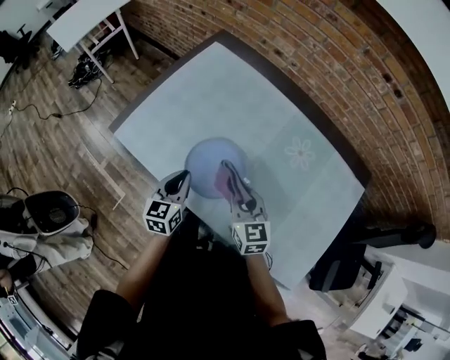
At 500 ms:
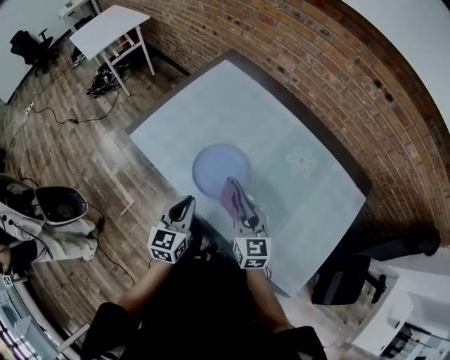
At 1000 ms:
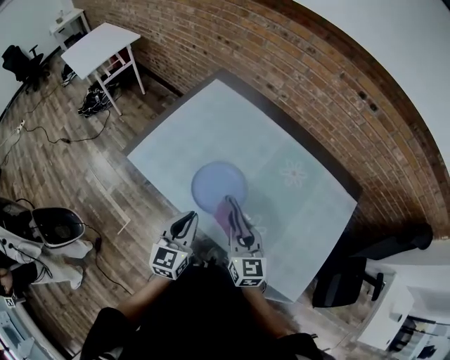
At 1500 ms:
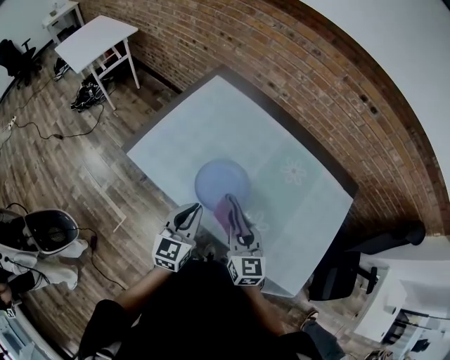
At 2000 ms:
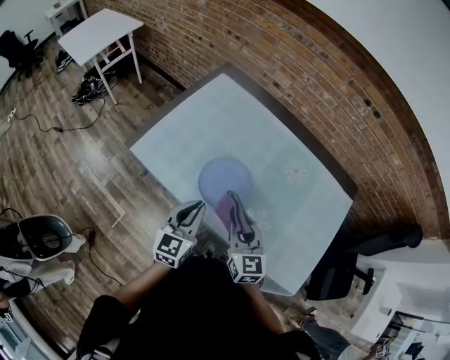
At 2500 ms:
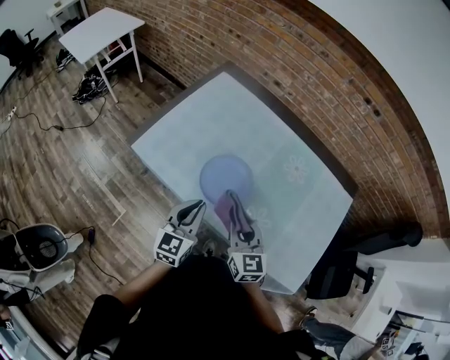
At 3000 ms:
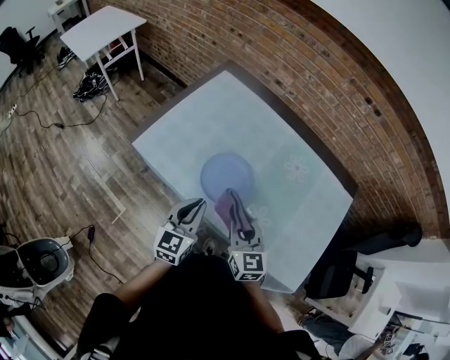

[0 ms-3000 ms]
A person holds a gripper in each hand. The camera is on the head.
0 ms to 1500 ms: The right gripper heads backward and upward, covering approximately 15 cm; the left gripper moves upward and backward, roughly 15 cm.
1500 ms to 3000 ms: The grippers make only small movements.

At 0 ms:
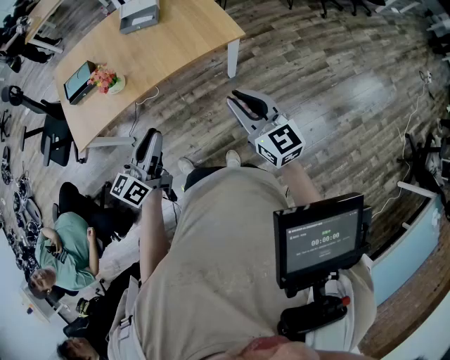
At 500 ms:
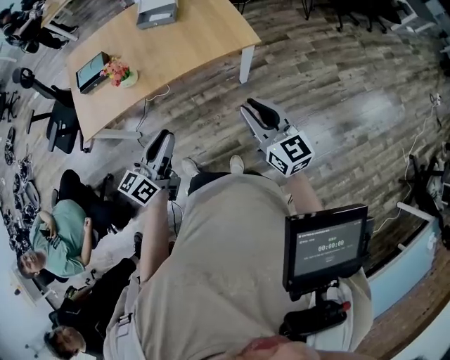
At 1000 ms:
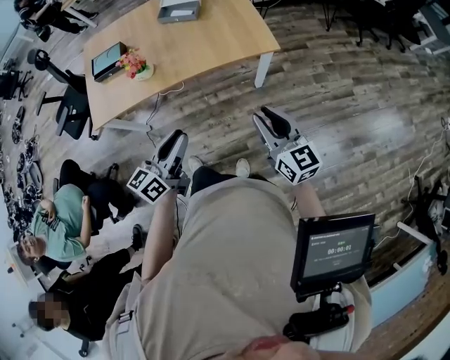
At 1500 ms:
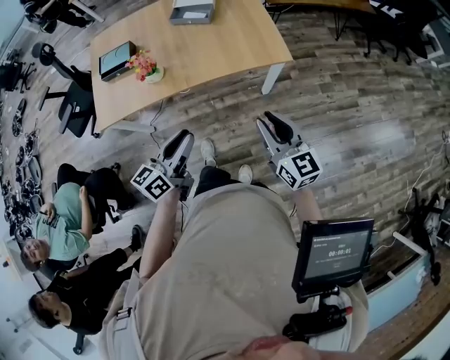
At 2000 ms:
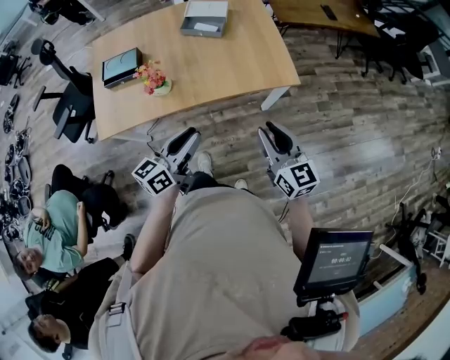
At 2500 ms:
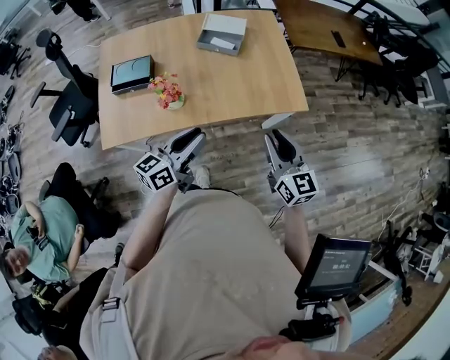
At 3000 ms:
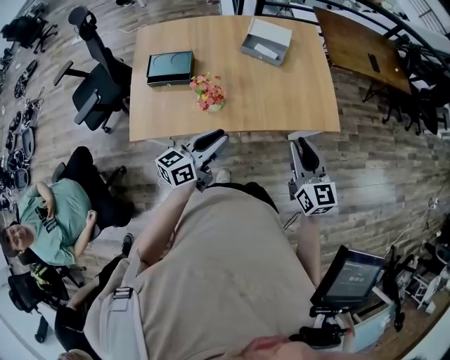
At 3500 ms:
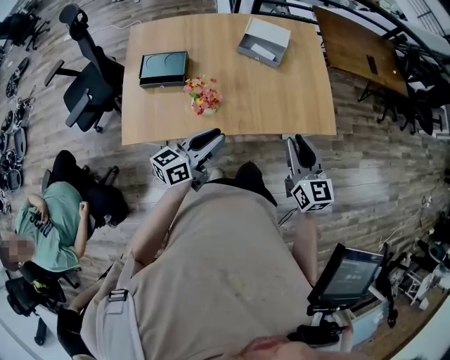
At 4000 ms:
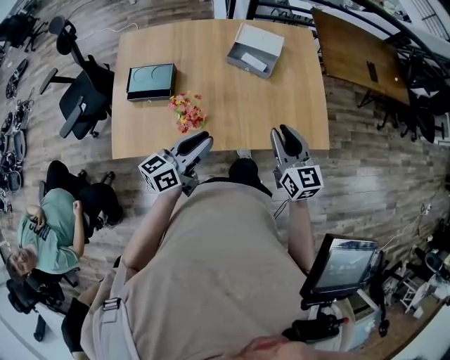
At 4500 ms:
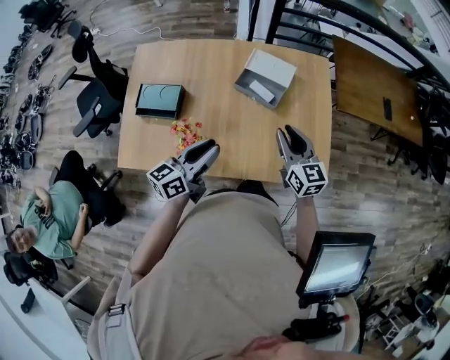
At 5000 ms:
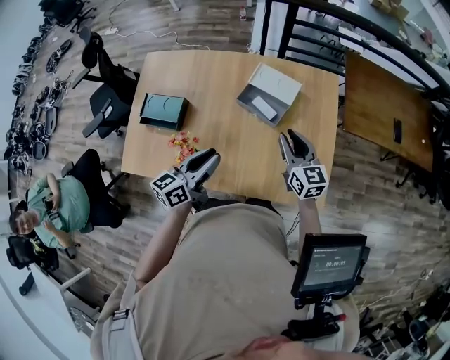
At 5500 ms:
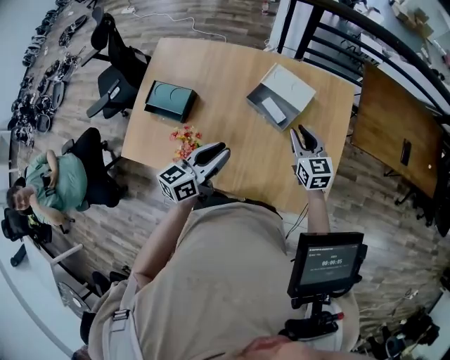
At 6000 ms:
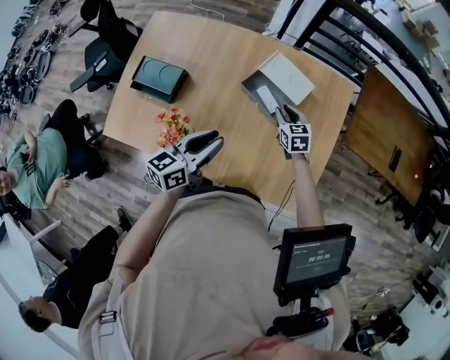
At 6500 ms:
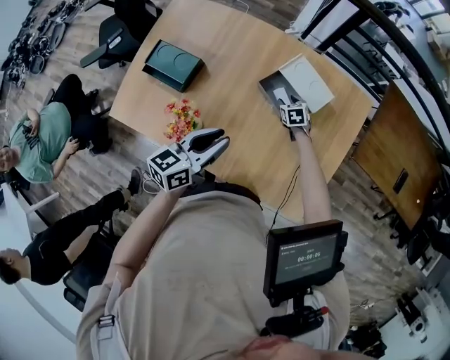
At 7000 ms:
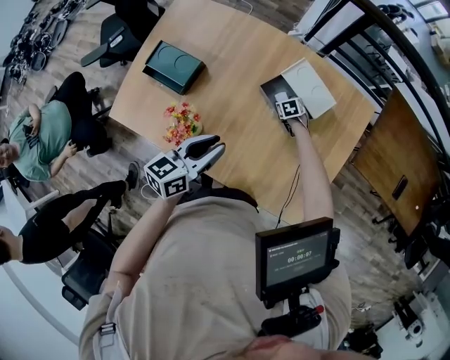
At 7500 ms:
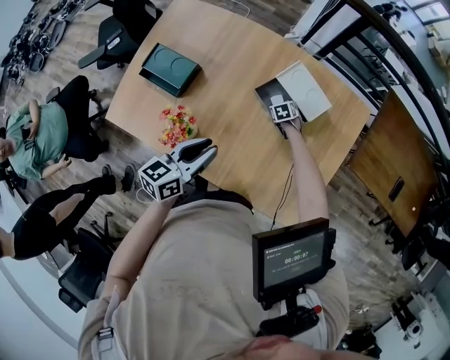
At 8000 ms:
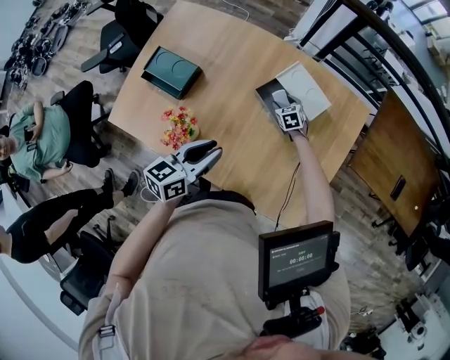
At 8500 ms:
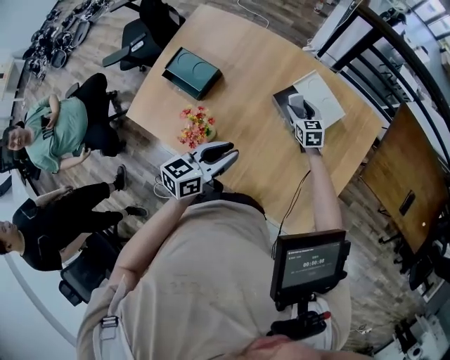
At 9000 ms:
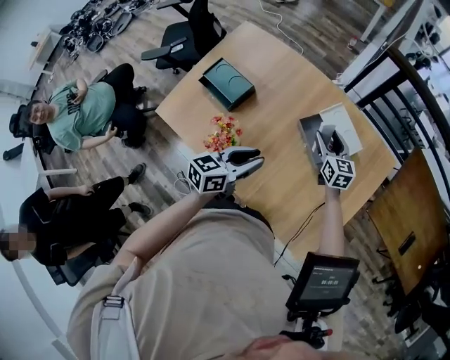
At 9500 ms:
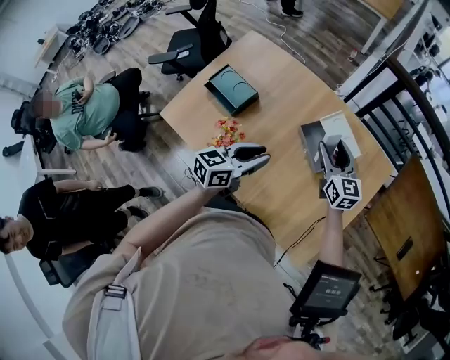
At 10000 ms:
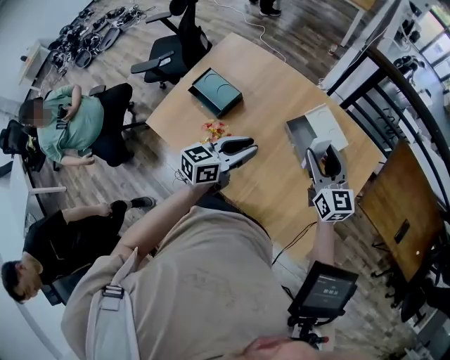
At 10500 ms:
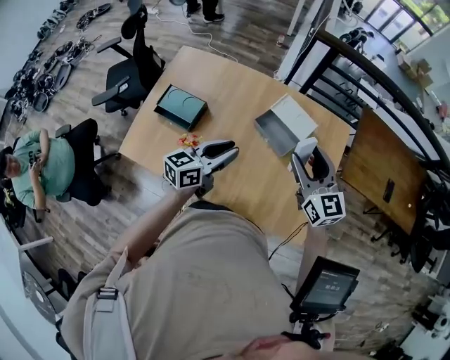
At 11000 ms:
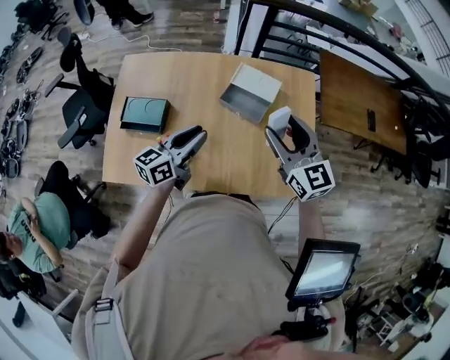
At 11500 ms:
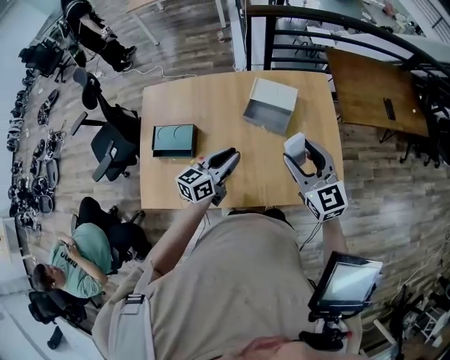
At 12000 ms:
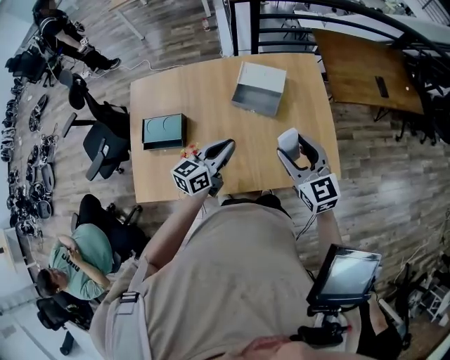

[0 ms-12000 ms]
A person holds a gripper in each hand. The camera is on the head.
0 ms to 2000 ms: Both grippers move forward and to the left, approximately 15 cm.
2000 ms to 4000 ms: The grippers both shift forward and to the left by approximately 30 cm.
4000 ms to 6000 ms: The right gripper heads forward and downward, covering approximately 40 cm, and swivels about 40 degrees. The left gripper heads forward and to the right, covering approximately 25 cm, and turns by approximately 20 degrees.
6000 ms to 8000 ms: The right gripper heads downward and forward, covering roughly 15 cm, swivels approximately 20 degrees, and opens its fingers.
8000 ms to 10000 ms: The right gripper travels upward by approximately 40 cm, and tilts its fingers some 50 degrees upward. The left gripper travels upward by some 5 cm.
10000 ms to 12000 ms: The left gripper rotates approximately 30 degrees; the right gripper moves some 20 cm, and rotates roughly 30 degrees.

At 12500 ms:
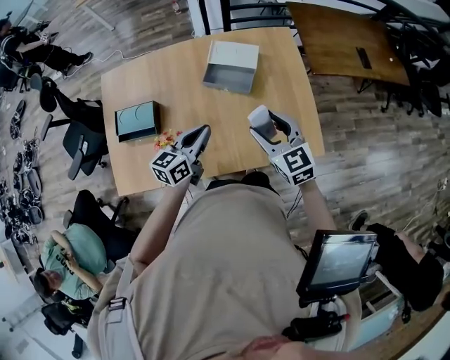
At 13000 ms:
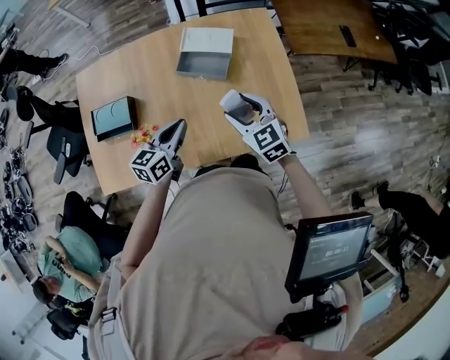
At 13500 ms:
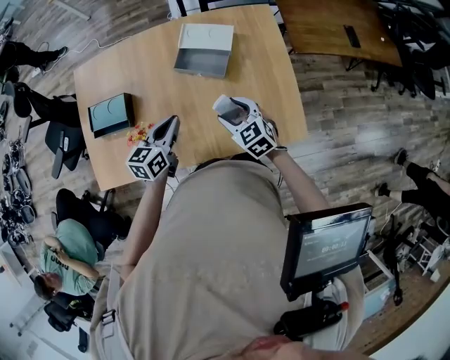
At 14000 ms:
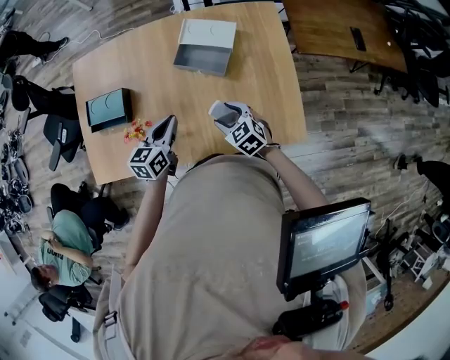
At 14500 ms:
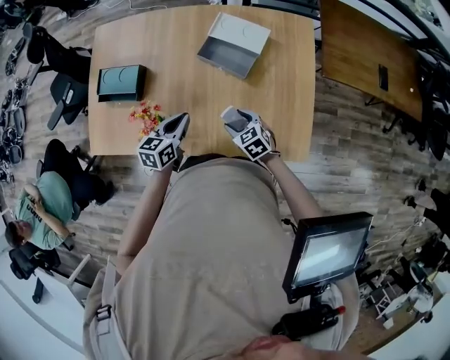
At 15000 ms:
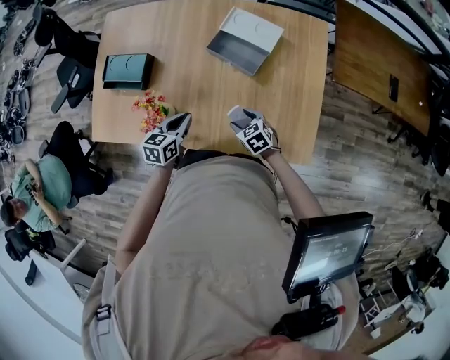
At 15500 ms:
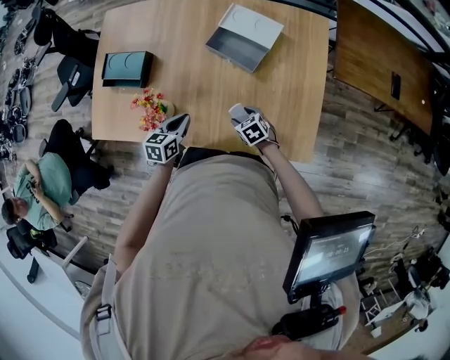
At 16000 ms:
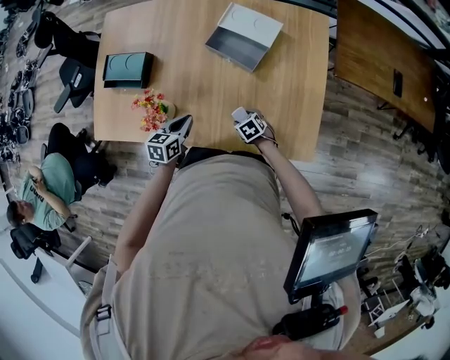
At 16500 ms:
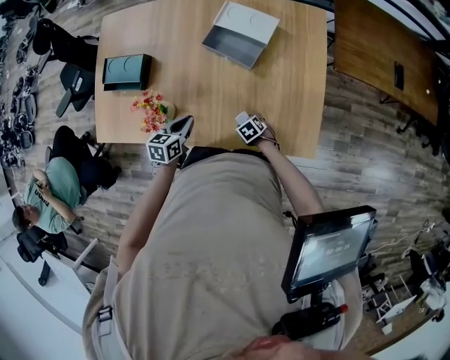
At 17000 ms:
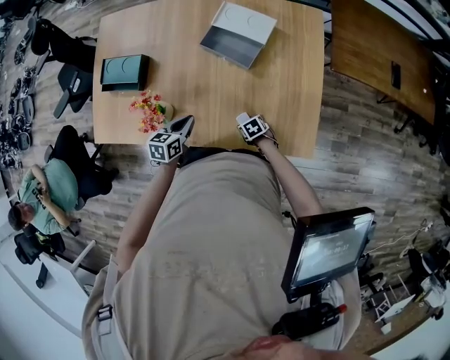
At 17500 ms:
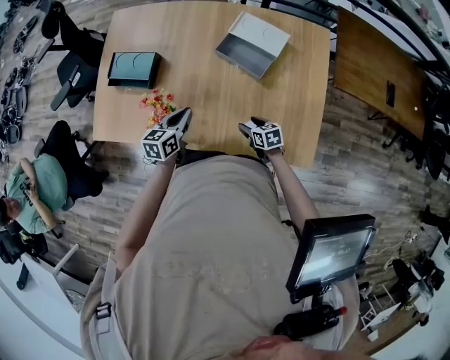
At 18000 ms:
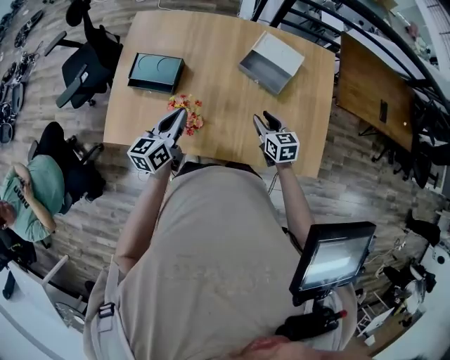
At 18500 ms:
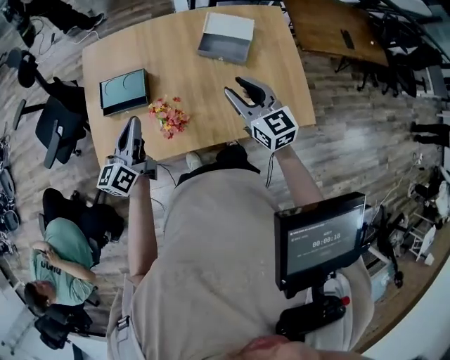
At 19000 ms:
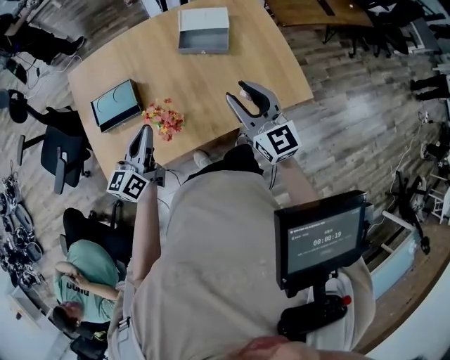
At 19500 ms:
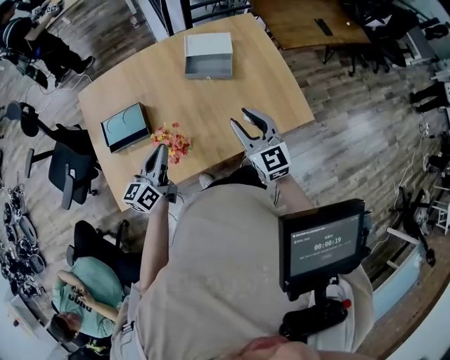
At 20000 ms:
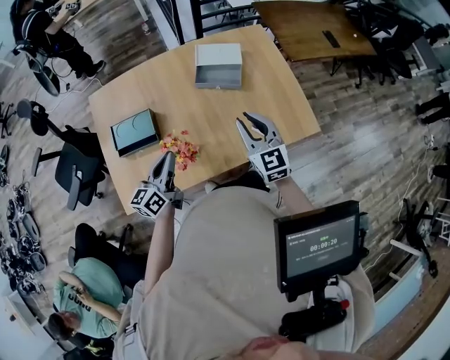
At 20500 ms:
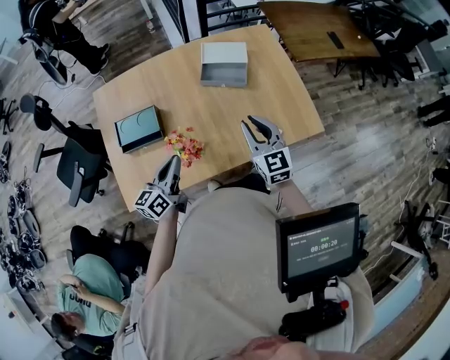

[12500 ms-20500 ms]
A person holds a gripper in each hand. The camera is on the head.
12500 ms to 14500 ms: The right gripper is displaced downward by approximately 25 cm, and turns by approximately 30 degrees. The left gripper is displaced downward by roughly 10 cm, and rotates about 20 degrees.
14500 ms to 16500 ms: The right gripper travels downward by approximately 20 cm, and changes its angle by roughly 20 degrees. Meanwhile the left gripper is displaced downward by some 10 cm.
16500 ms to 18500 ms: The right gripper is displaced upward by some 40 cm, points its fingers about 50 degrees further upward, and closes up. Meanwhile the left gripper goes some 35 cm to the left and upward, and tips its fingers upward by about 40 degrees.
18500 ms to 20500 ms: The left gripper travels to the right and downward by about 10 cm. Meanwhile the right gripper changes place by approximately 5 cm.

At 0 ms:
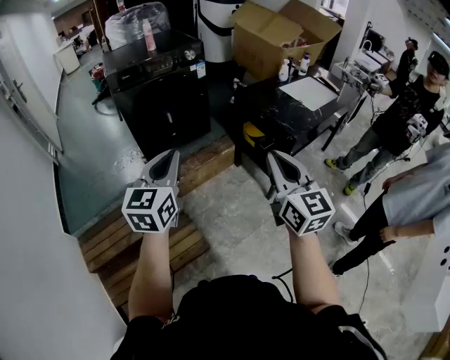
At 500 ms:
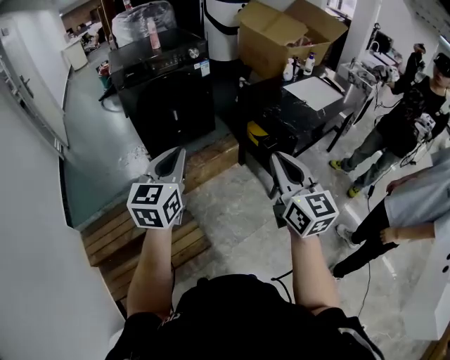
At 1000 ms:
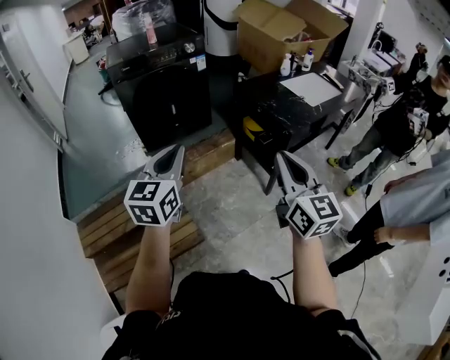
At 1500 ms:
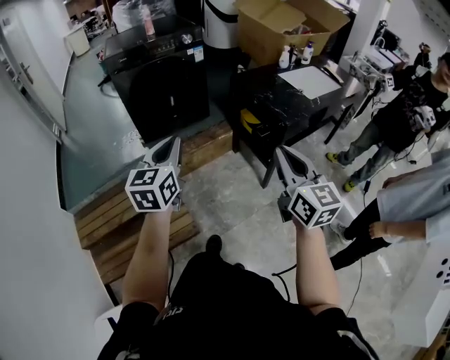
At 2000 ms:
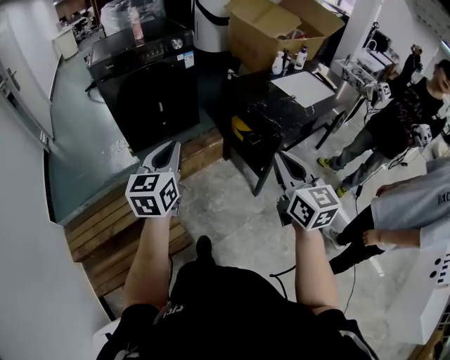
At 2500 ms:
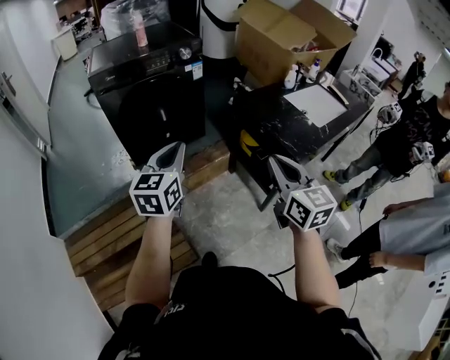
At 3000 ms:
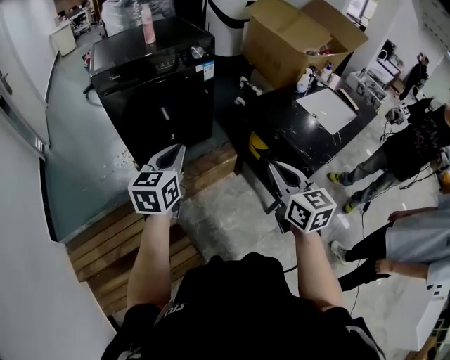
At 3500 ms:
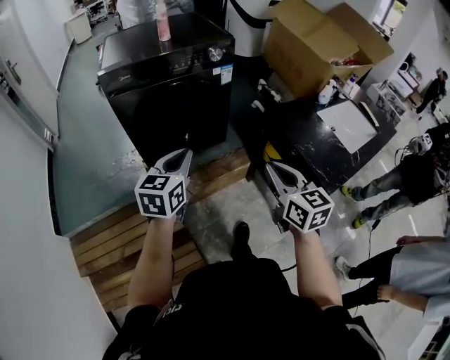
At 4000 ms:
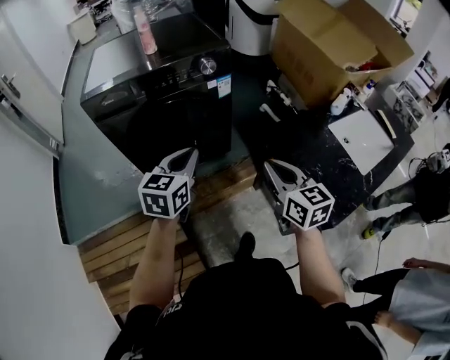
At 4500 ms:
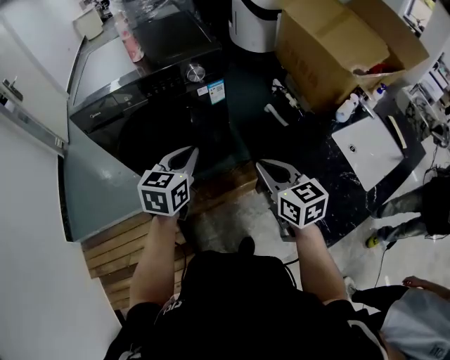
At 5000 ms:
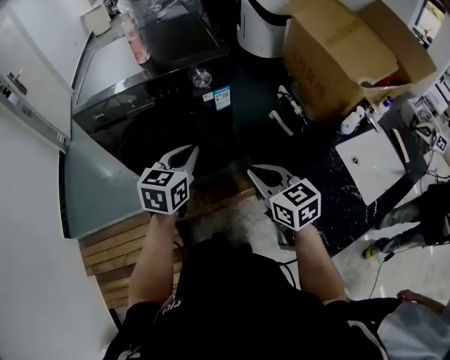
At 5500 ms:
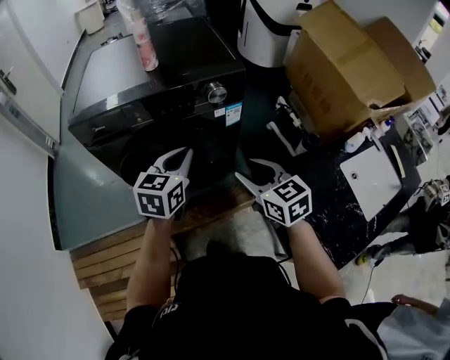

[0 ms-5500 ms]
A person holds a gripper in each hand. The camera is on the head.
0 ms to 2000 ms: The right gripper shifts about 10 cm to the right. The left gripper goes some 10 cm to the right, downward and forward.
2000 ms to 3500 ms: The grippers both shift forward and to the left by approximately 30 cm.
3500 ms to 5500 ms: Both grippers travel together forward, roughly 30 cm. The right gripper swivels some 20 degrees, and opens its fingers.
